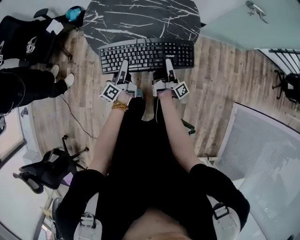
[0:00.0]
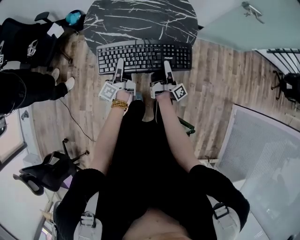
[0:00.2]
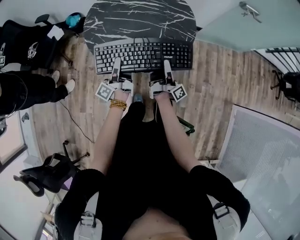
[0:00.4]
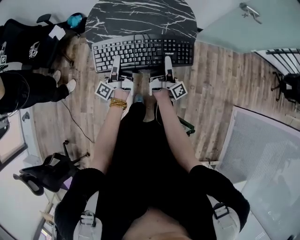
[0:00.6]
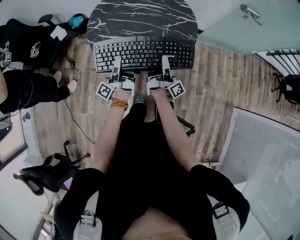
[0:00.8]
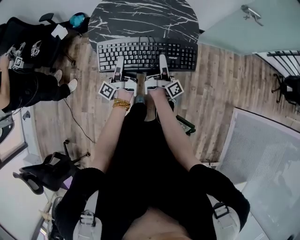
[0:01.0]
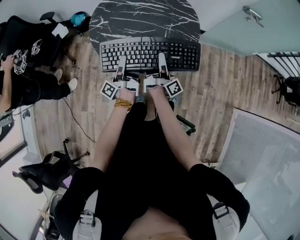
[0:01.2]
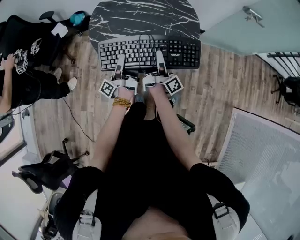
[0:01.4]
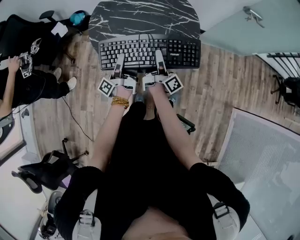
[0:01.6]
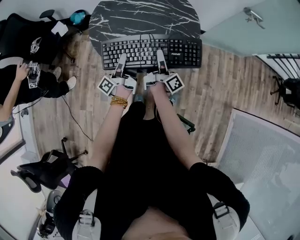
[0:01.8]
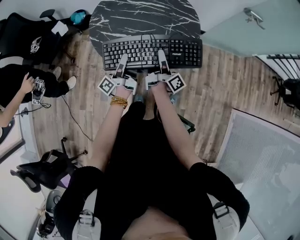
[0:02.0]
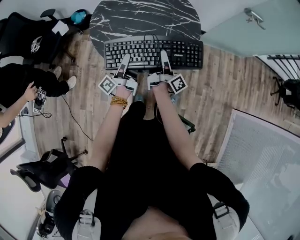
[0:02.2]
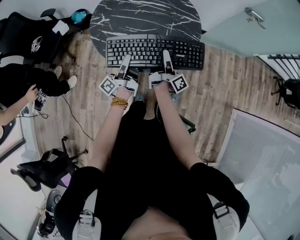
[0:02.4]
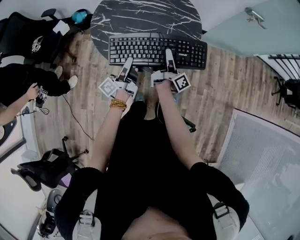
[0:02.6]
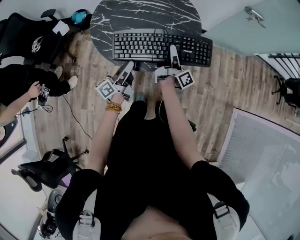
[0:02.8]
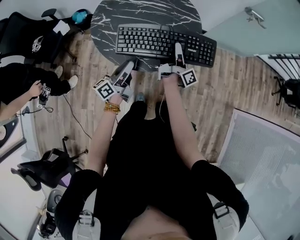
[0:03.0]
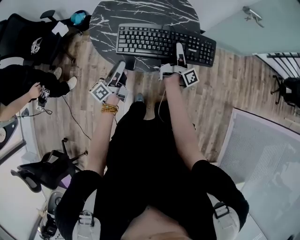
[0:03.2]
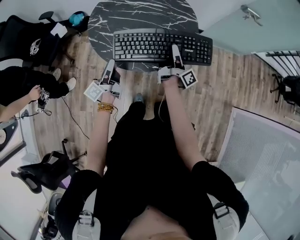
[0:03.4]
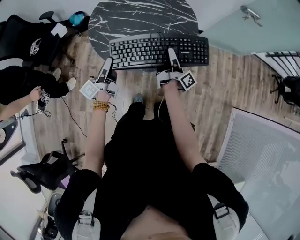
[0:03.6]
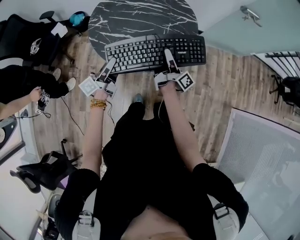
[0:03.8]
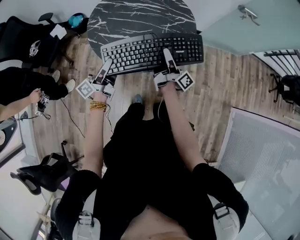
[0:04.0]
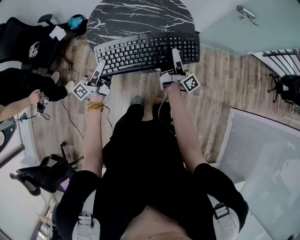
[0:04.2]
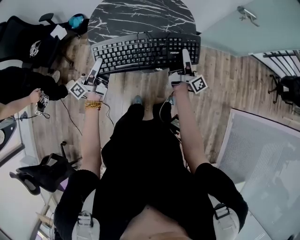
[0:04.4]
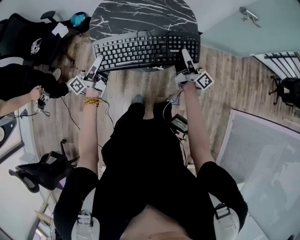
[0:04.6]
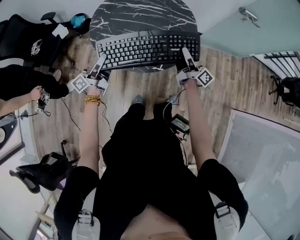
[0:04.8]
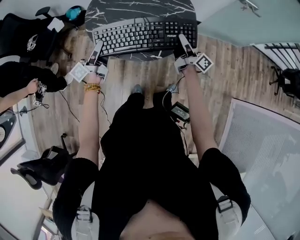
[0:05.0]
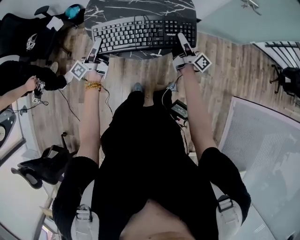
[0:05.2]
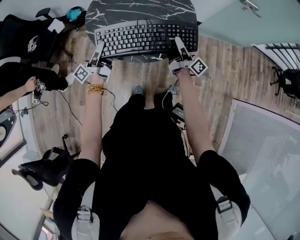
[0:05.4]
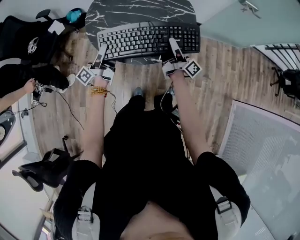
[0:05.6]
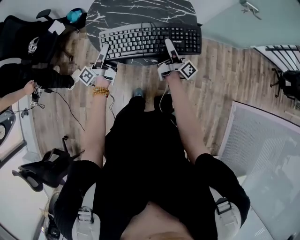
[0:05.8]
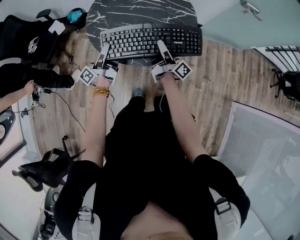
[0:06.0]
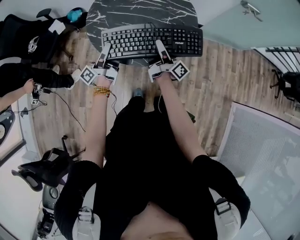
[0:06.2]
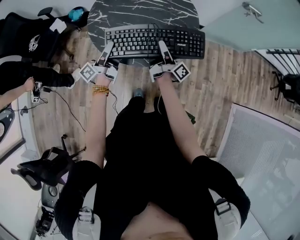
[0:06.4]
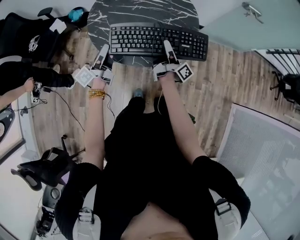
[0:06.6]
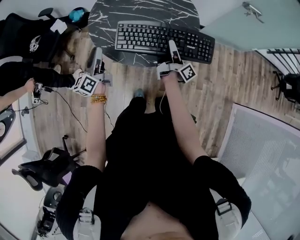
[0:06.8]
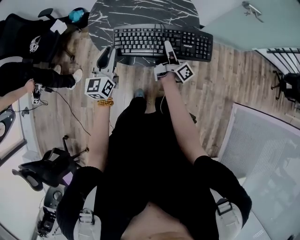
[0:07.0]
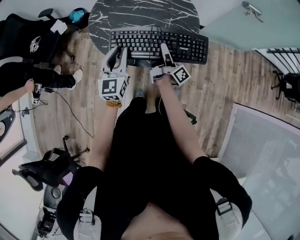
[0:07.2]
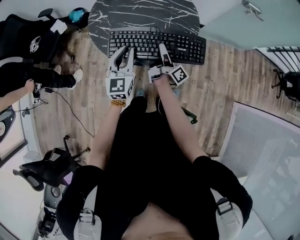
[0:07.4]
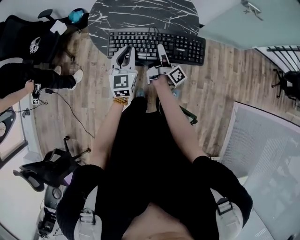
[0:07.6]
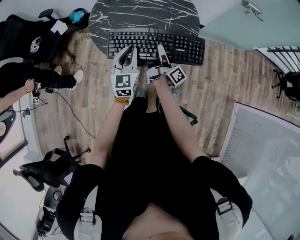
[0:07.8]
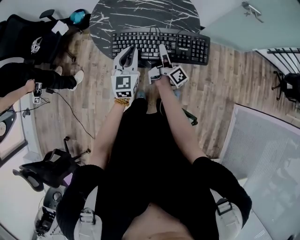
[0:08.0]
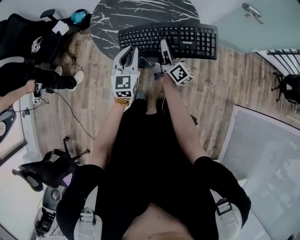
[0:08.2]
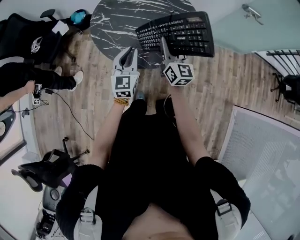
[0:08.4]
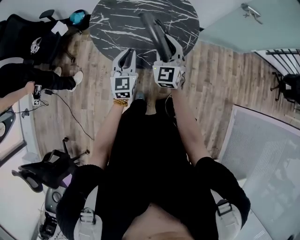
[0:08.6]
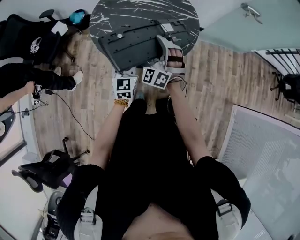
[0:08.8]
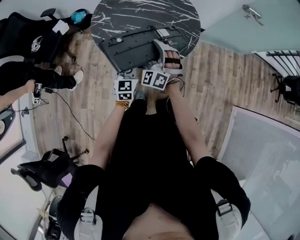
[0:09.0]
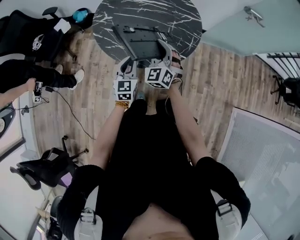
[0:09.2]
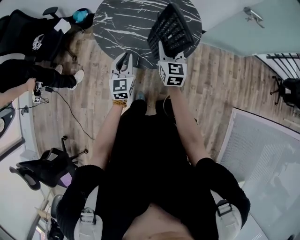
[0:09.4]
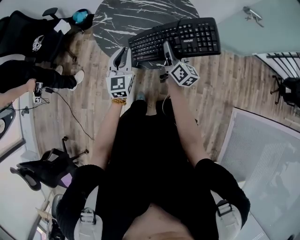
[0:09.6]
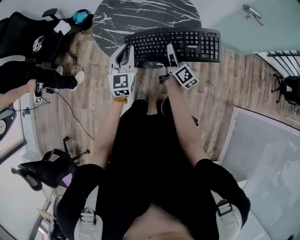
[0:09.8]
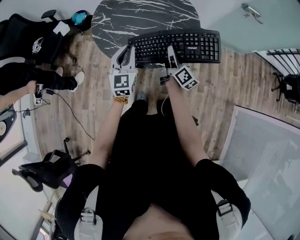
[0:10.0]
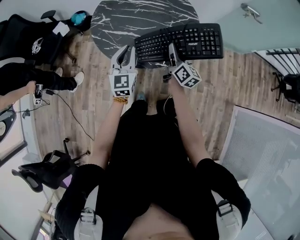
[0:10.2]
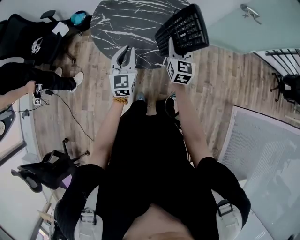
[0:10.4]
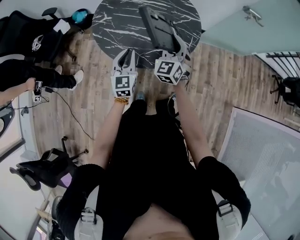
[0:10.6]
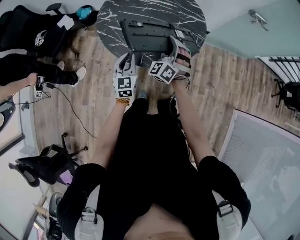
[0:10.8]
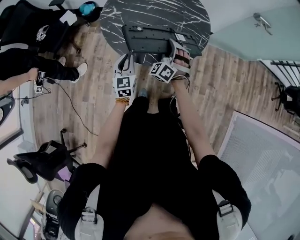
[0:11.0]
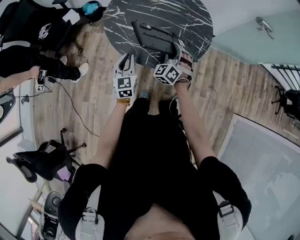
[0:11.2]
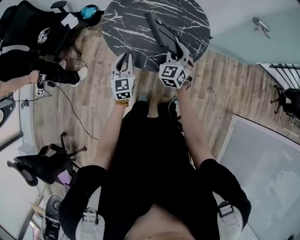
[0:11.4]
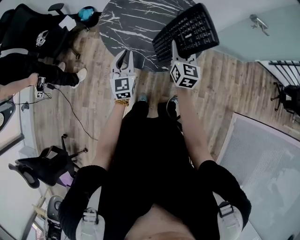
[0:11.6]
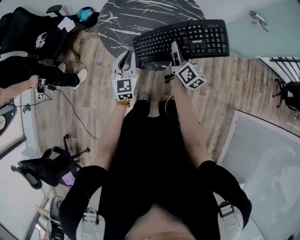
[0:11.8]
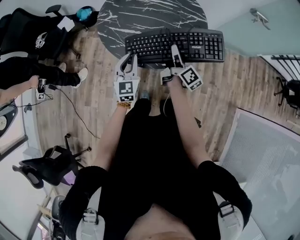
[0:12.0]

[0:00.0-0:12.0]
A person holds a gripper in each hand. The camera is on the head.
0:00.0 to 0:01.6: The right gripper travels upward and to the left by about 10 cm, and opens, then closes again; the left gripper travels upward by approximately 5 cm, rotates roughly 30 degrees, and closes.
0:01.6 to 0:03.0: The right gripper travels to the right by some 5 cm, while the left gripper ends up approximately 5 cm from where it was, and swivels about 40 degrees.
0:03.0 to 0:04.4: The left gripper shifts about 10 cm to the left and upward, and turns by some 20 degrees. The right gripper changes place by roughly 5 cm.
0:04.4 to 0:06.0: The left gripper moves about 5 cm. The right gripper goes some 10 cm to the left.
0:06.0 to 0:07.6: The left gripper goes some 10 cm to the right, rolls clockwise, seen from behind, by roughly 80 degrees, and opens, then closes once more.
0:07.6 to 0:09.0: The left gripper goes some 10 cm downward. The right gripper shifts approximately 10 cm to the left and upward, and rolls counterclockwise, seen from behind, by some 140 degrees.
0:09.0 to 0:10.4: The left gripper travels upward by some 10 cm, while the right gripper travels to the right by roughly 10 cm, and rolls clockwise, seen from behind, by approximately 60 degrees.
0:10.4 to 0:12.0: The right gripper moves up and down over some 10 cm, changing direction 2 times, and rolls clockwise, seen from behind, by about 60 degrees.

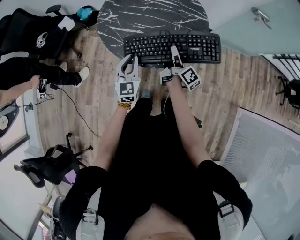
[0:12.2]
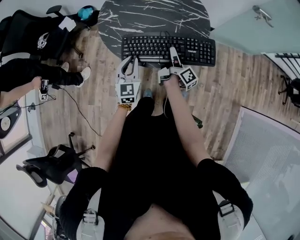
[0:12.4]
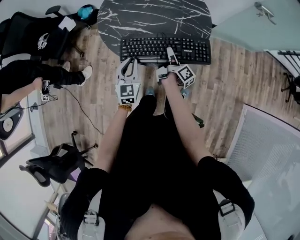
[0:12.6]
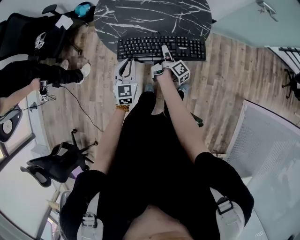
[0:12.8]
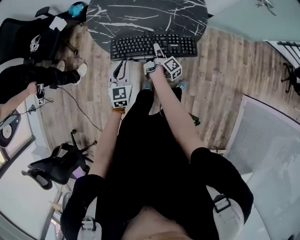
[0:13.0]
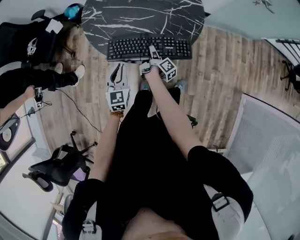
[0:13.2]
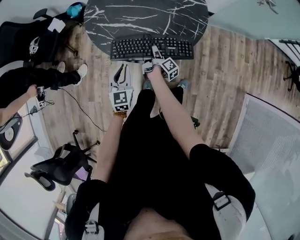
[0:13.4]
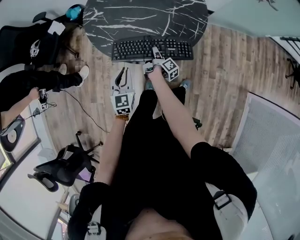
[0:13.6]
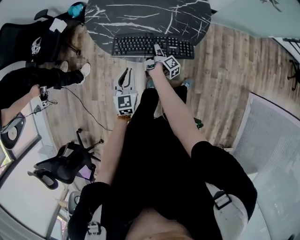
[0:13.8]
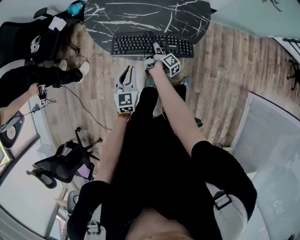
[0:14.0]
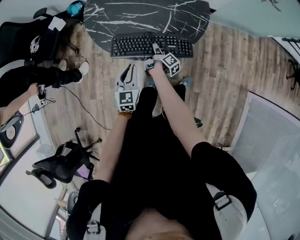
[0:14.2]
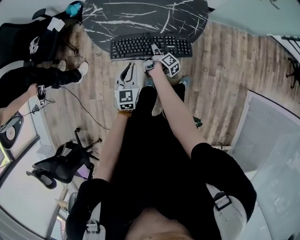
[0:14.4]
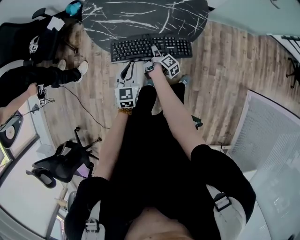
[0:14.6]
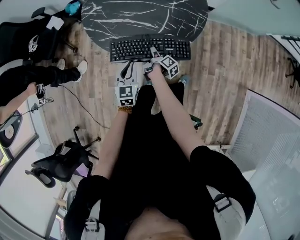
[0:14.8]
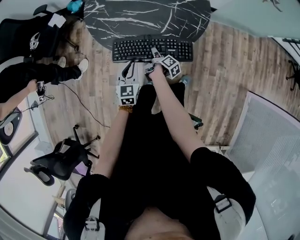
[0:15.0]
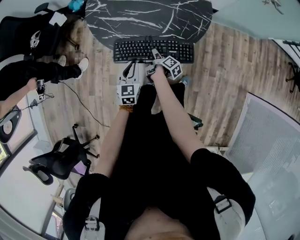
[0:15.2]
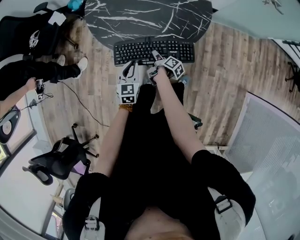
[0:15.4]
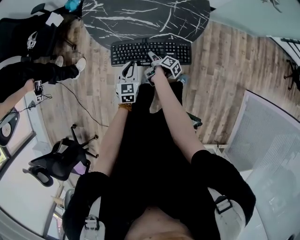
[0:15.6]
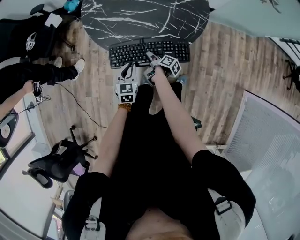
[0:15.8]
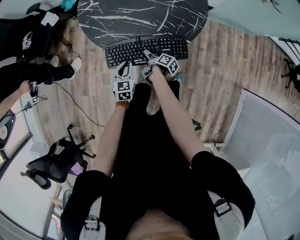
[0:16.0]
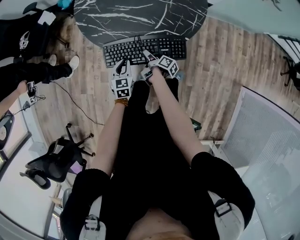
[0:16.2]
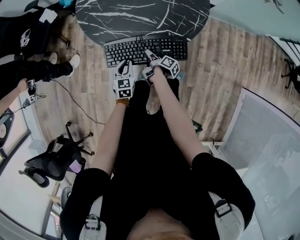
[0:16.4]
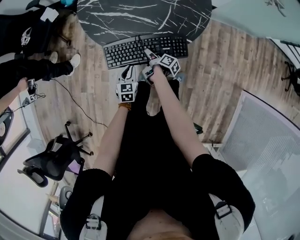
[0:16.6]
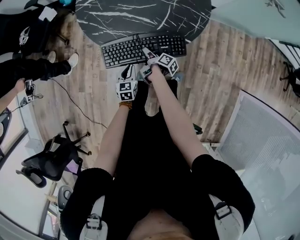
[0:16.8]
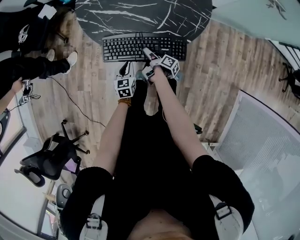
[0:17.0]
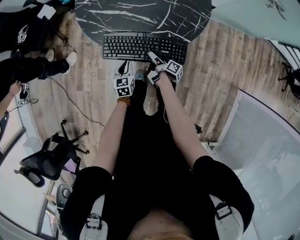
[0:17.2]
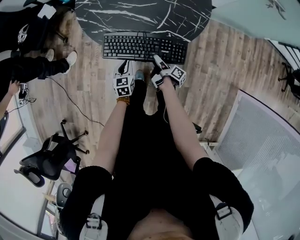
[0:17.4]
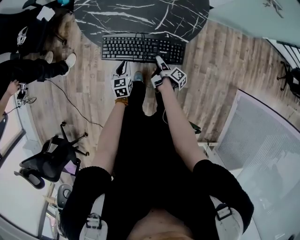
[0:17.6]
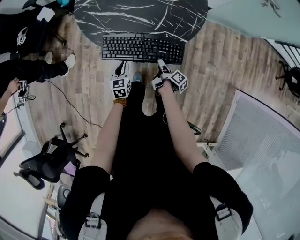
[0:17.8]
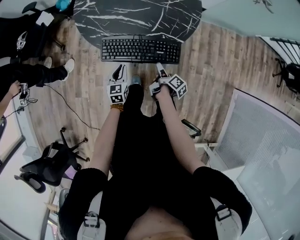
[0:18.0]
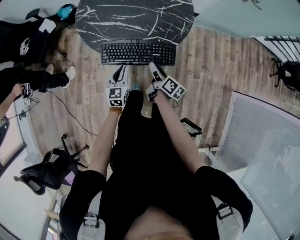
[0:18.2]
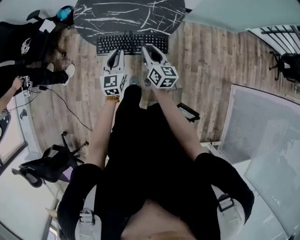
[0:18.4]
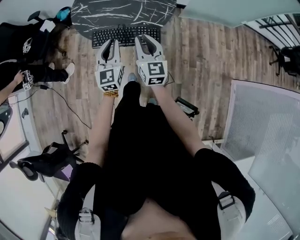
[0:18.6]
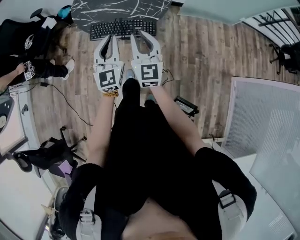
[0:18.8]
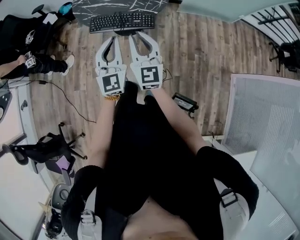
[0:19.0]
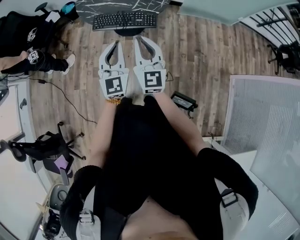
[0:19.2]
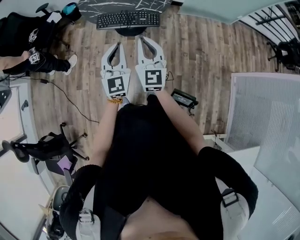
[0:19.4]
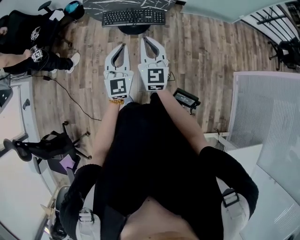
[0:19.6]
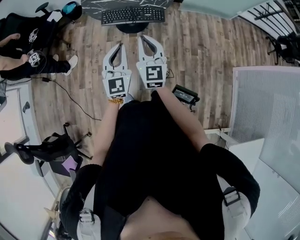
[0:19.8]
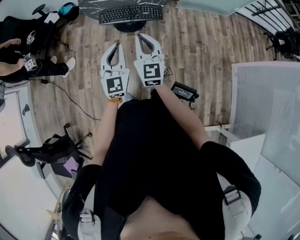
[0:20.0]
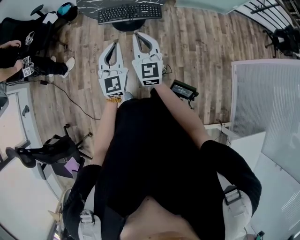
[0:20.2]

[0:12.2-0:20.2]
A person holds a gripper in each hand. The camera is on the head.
0:12.2 to 0:13.8: The left gripper heads downward, covering some 10 cm; the right gripper is displaced downward by about 25 cm, and changes its angle by roughly 30 degrees.
0:13.8 to 0:15.4: The left gripper goes roughly 5 cm downward; the right gripper is displaced backward by approximately 5 cm, changes its angle by about 30 degrees, and opens up.
0:15.4 to 0:17.0: The left gripper shifts approximately 10 cm downward.
0:17.0 to 0:18.6: Both grippers move upward, about 35 cm. The left gripper tilts its fingers some 30 degrees upward, while the right gripper rolls counterclockwise, seen from behind, by roughly 90 degrees, and closes its fingers.
0:18.6 to 0:20.2: The two grippers go approximately 20 cm backward.

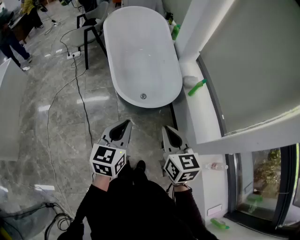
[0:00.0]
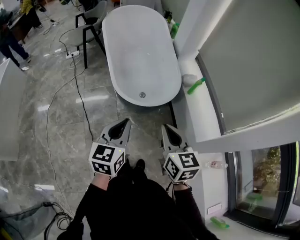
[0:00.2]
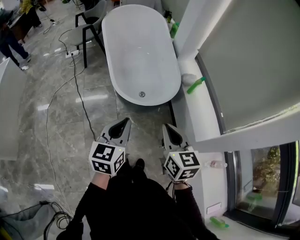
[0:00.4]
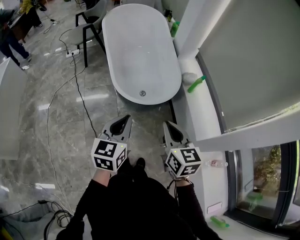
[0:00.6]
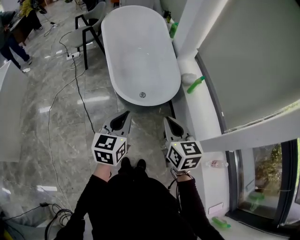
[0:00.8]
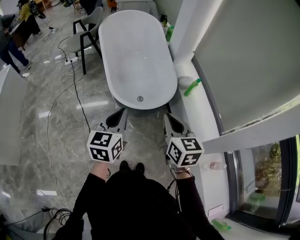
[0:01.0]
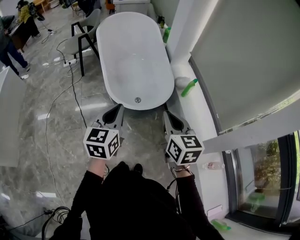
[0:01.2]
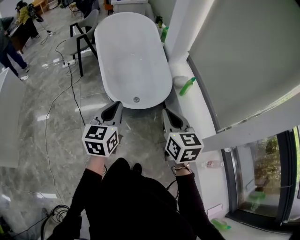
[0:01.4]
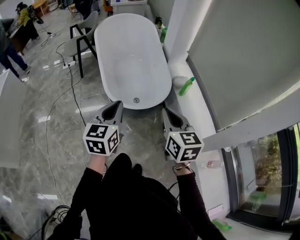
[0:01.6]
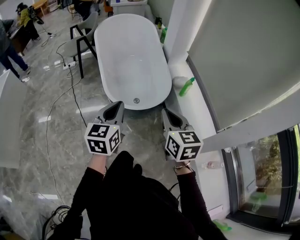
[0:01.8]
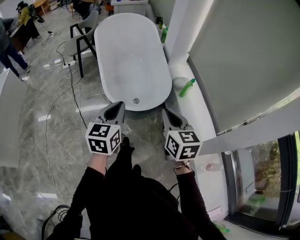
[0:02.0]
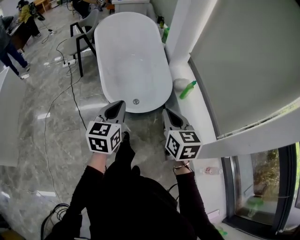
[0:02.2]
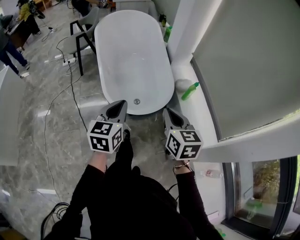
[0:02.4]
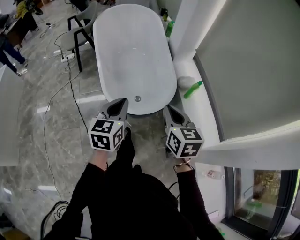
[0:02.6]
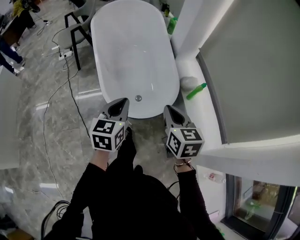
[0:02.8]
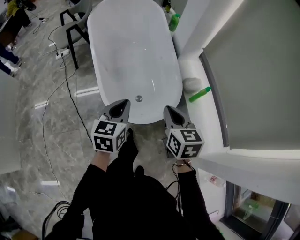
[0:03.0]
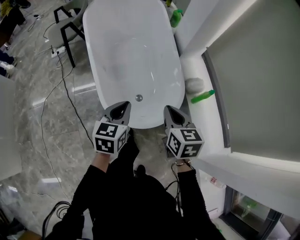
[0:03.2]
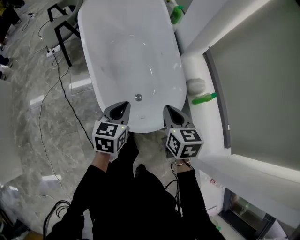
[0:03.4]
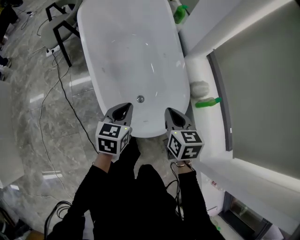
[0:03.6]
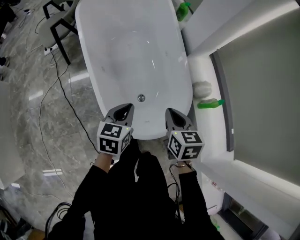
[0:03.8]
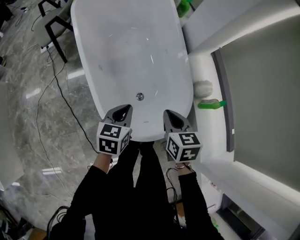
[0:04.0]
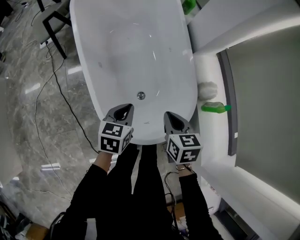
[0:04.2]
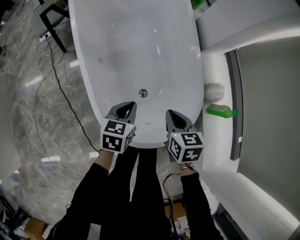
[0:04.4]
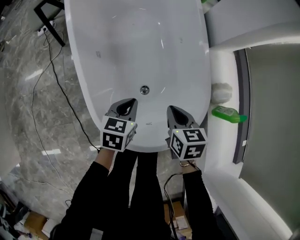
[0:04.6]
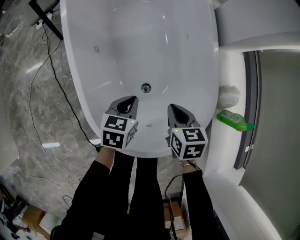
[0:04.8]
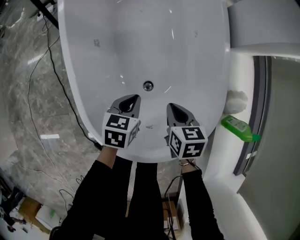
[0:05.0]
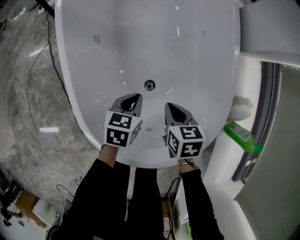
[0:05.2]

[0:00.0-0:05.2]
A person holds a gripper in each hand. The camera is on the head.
0:00.0 to 0:01.8: The right gripper moves to the right, some 5 cm, while the left gripper moves forward, approximately 5 cm.
0:01.8 to 0:03.4: The right gripper travels forward by roughly 30 cm. The left gripper goes some 30 cm forward and downward, and rotates some 20 degrees.
0:03.4 to 0:05.2: Both grippers travel together downward and forward, some 35 cm. The right gripper turns by about 30 degrees. The left gripper changes its angle by approximately 20 degrees.
